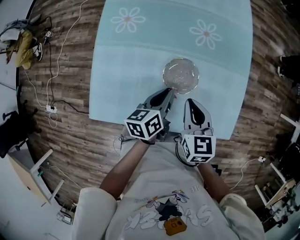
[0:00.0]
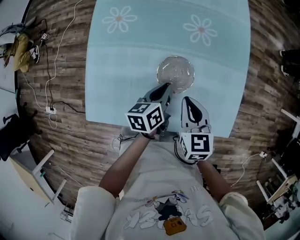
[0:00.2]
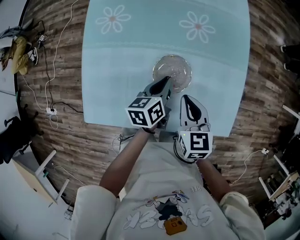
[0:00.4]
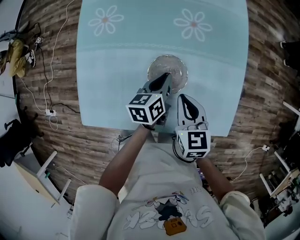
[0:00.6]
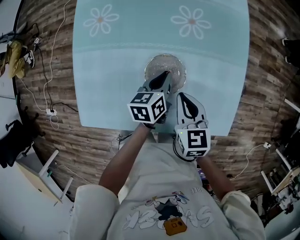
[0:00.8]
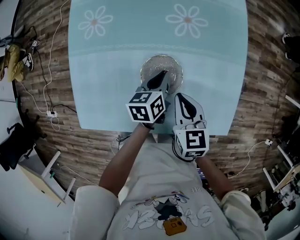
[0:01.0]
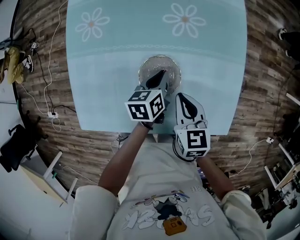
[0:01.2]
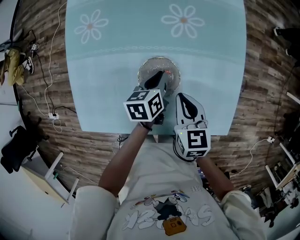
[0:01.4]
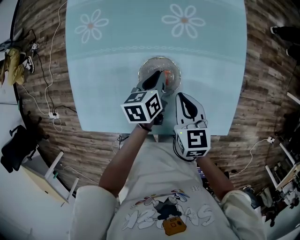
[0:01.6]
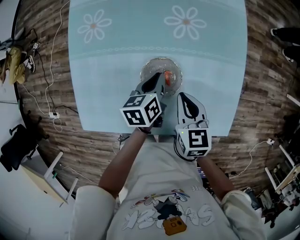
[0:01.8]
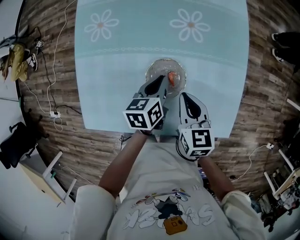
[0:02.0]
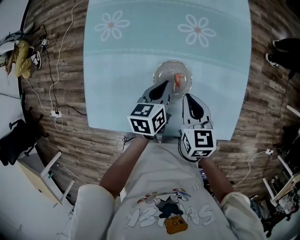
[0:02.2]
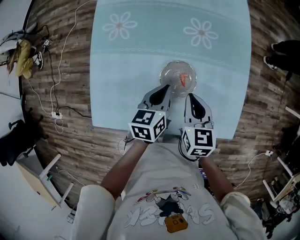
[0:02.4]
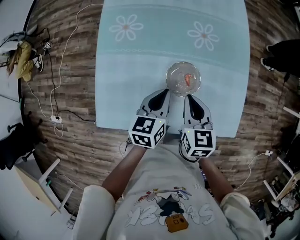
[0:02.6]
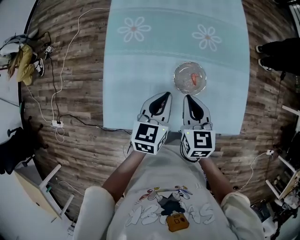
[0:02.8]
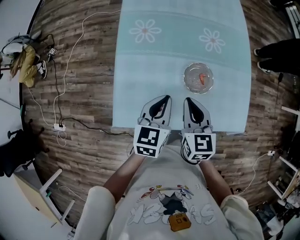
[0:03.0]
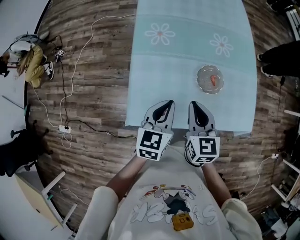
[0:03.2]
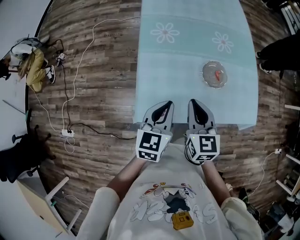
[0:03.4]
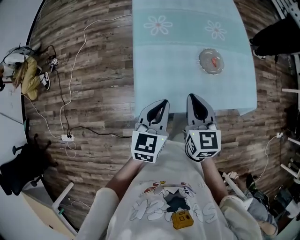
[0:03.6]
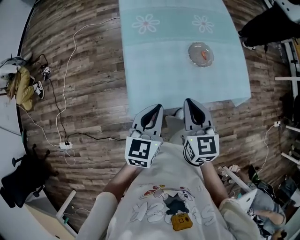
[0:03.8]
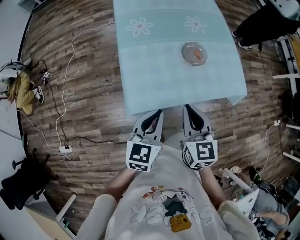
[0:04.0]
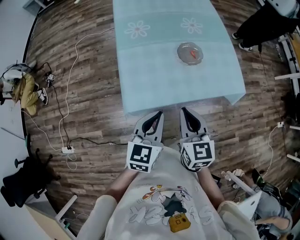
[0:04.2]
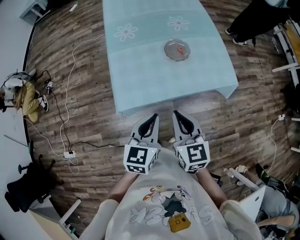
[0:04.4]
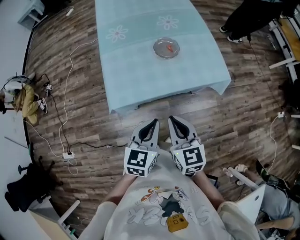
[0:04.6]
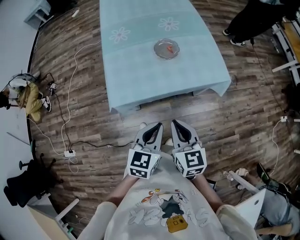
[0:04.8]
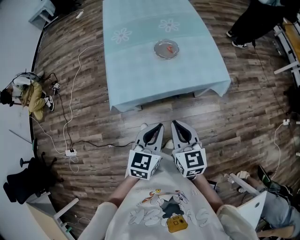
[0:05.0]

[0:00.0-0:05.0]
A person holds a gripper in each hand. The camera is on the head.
0:00.0 to 0:01.6: The right gripper moves downward and to the right, approximately 10 cm, while the left gripper is displaced forward, downward and to the right by about 15 cm.
0:01.6 to 0:03.4: Both grippers move to the left, backward and upward, approximately 40 cm. The right gripper swivels some 20 degrees; the left gripper swivels roughly 40 degrees.
0:03.4 to 0:05.0: The grippers both shift backward and to the right by approximately 35 cm.

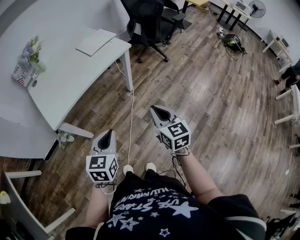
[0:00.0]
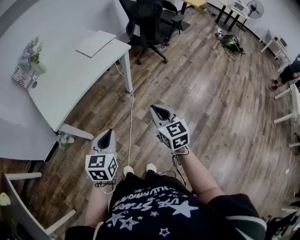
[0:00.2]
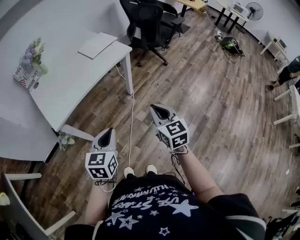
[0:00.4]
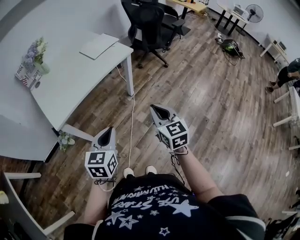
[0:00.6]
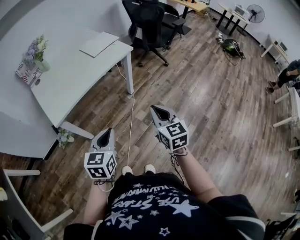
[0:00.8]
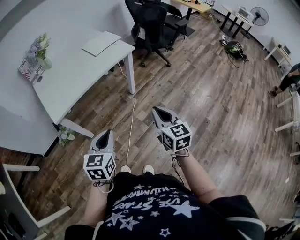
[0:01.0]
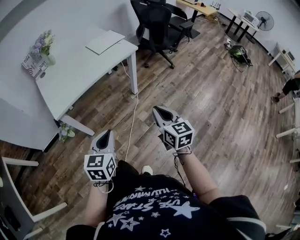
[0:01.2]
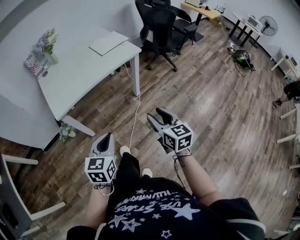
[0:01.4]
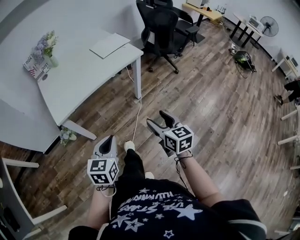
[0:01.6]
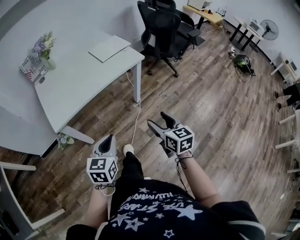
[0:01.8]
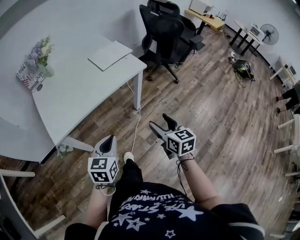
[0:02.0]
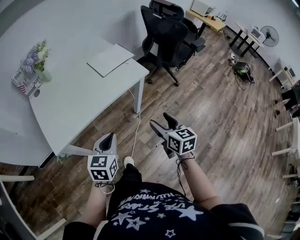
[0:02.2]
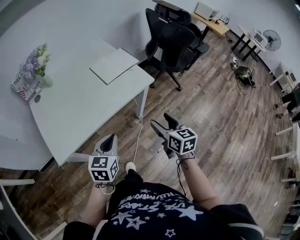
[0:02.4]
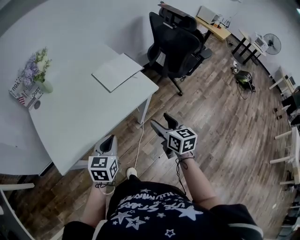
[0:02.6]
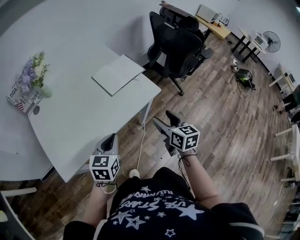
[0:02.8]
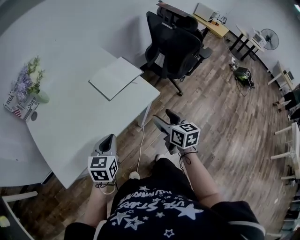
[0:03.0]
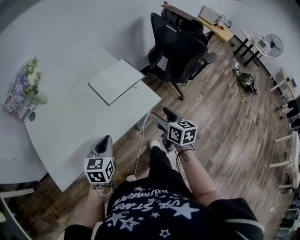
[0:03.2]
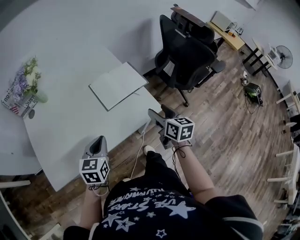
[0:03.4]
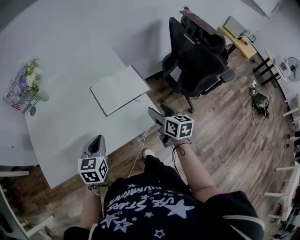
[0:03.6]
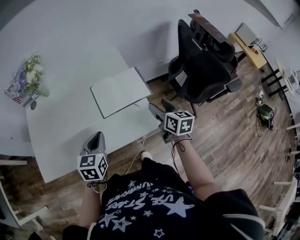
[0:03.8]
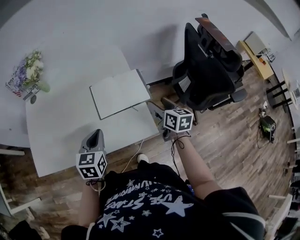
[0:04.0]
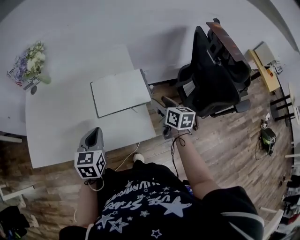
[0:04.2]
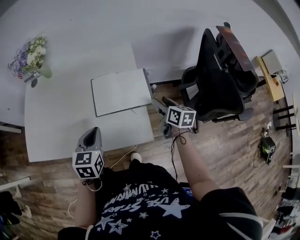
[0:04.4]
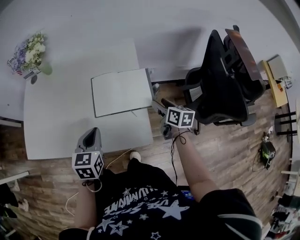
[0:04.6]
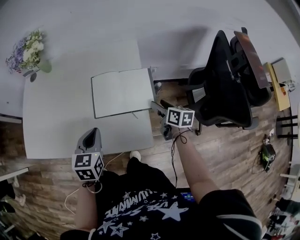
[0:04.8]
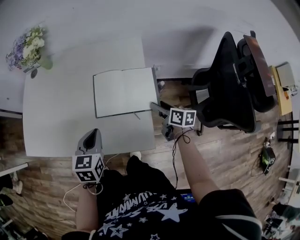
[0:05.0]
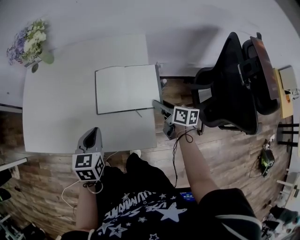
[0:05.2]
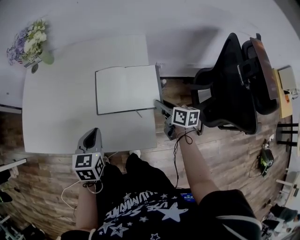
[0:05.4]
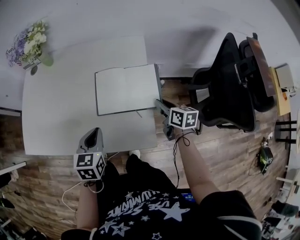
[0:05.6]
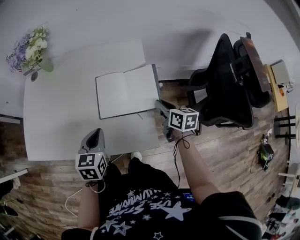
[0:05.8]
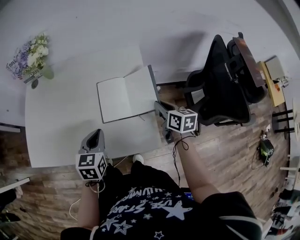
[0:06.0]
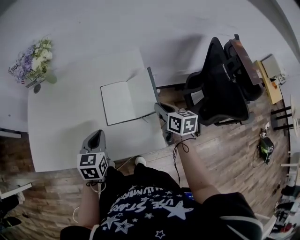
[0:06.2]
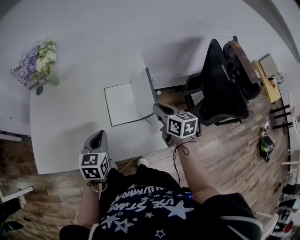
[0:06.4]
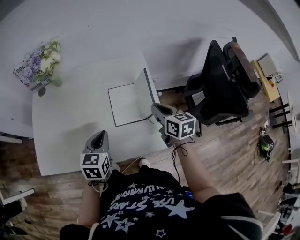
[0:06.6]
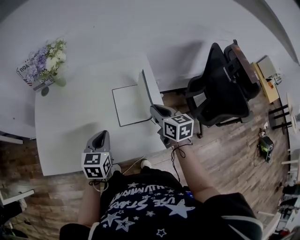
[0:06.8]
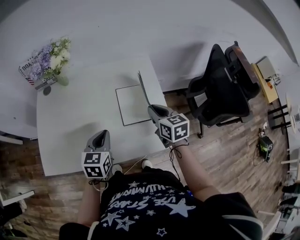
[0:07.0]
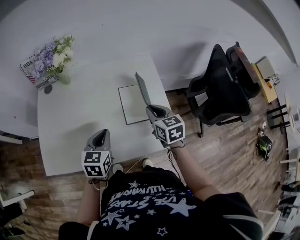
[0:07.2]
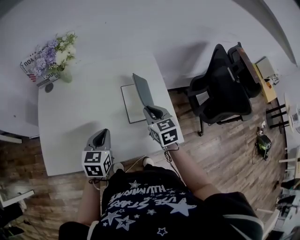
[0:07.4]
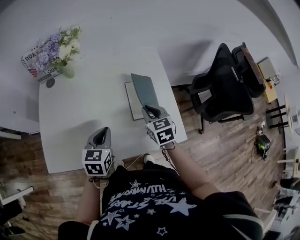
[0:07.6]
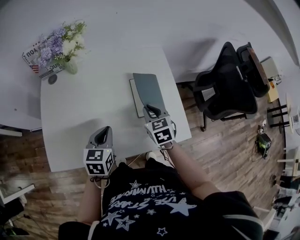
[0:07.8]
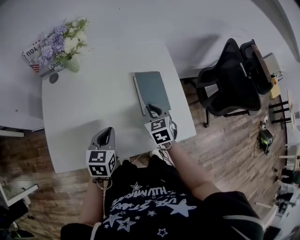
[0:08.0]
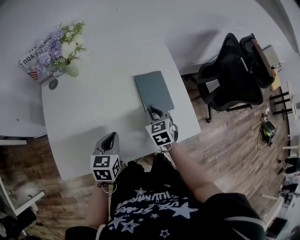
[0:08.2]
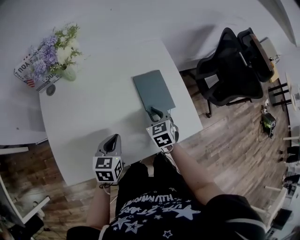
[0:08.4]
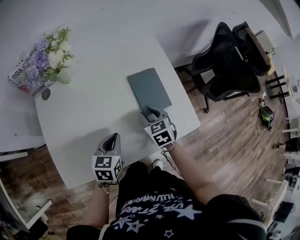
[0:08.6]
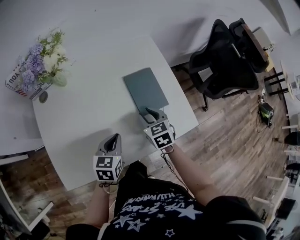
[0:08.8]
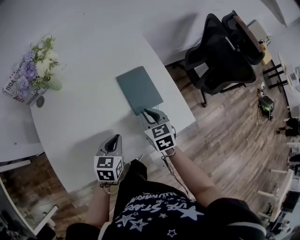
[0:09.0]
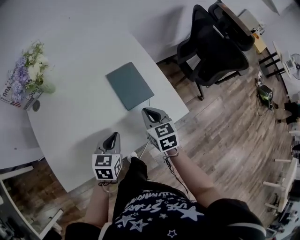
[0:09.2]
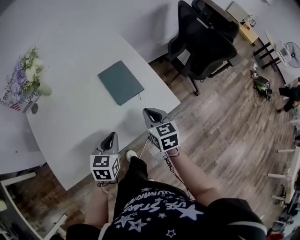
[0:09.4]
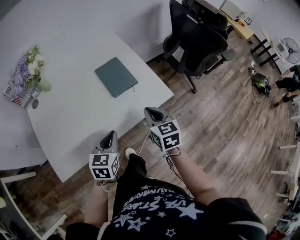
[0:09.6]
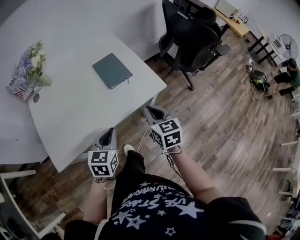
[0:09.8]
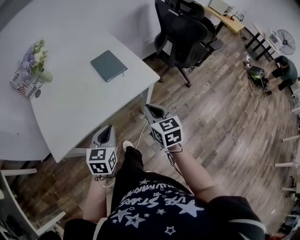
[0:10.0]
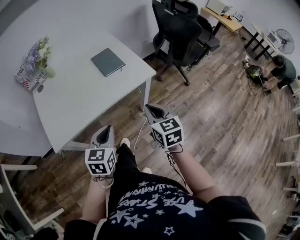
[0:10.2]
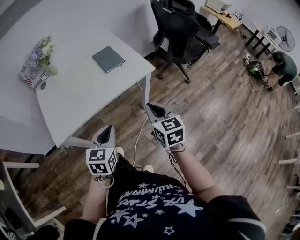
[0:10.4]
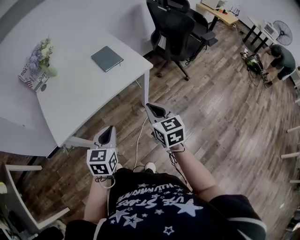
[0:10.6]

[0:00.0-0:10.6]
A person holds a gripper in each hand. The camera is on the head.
0:00.0 to 0:01.6: The right gripper opens.
0:01.6 to 0:03.0: Both grippers move forward, approximately 40 cm.
0:03.0 to 0:04.6: The left gripper ends up roughly 20 cm from where it was, and swivels some 40 degrees, while the right gripper changes place by approximately 40 cm, and changes its angle by roughly 40 degrees.
0:04.6 to 0:06.0: The right gripper travels to the left by some 5 cm, and closes up.
0:06.0 to 0:07.6: The right gripper is displaced to the left by about 20 cm, and changes its angle by some 30 degrees. The left gripper goes approximately 15 cm to the left.
0:07.6 to 0:09.0: The left gripper heads downward, covering approximately 5 cm.
0:09.0 to 0:10.6: The left gripper shifts roughly 30 cm backward; the right gripper goes some 40 cm backward and to the right, and turns by roughly 20 degrees.

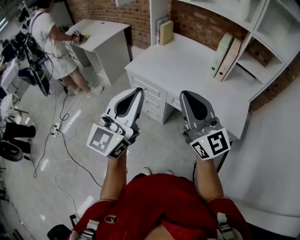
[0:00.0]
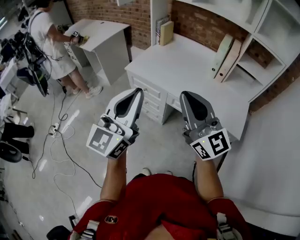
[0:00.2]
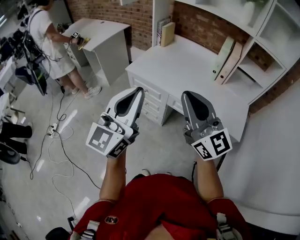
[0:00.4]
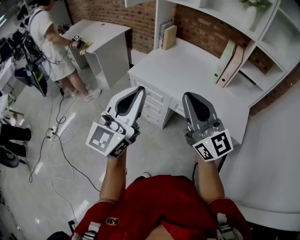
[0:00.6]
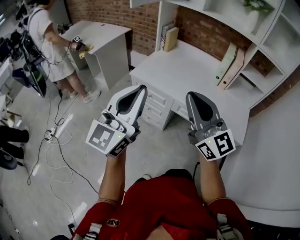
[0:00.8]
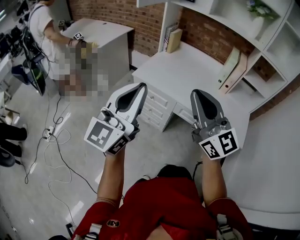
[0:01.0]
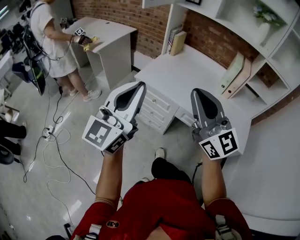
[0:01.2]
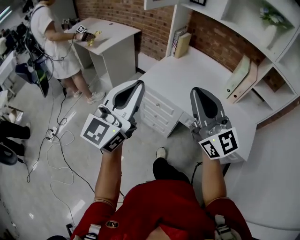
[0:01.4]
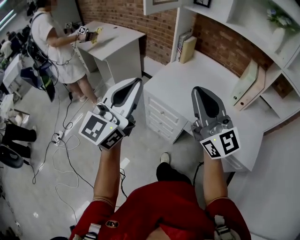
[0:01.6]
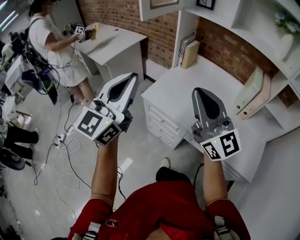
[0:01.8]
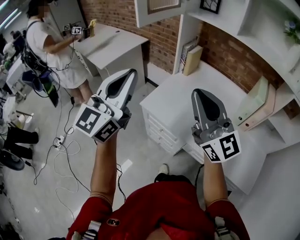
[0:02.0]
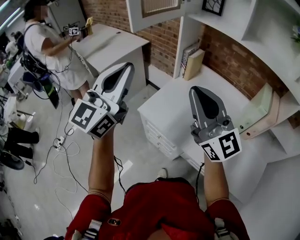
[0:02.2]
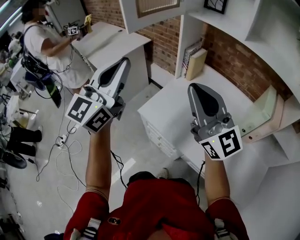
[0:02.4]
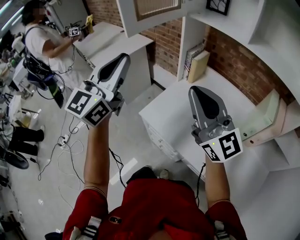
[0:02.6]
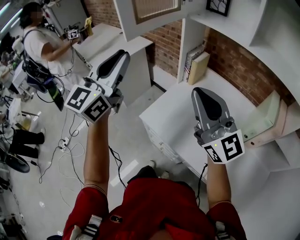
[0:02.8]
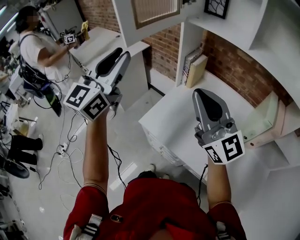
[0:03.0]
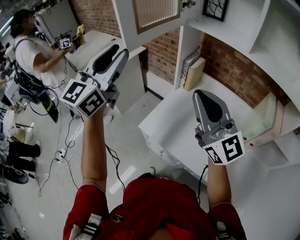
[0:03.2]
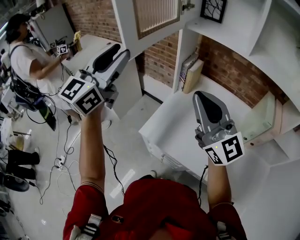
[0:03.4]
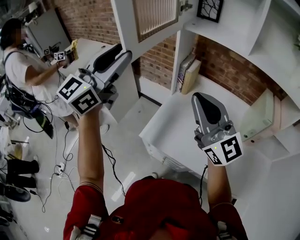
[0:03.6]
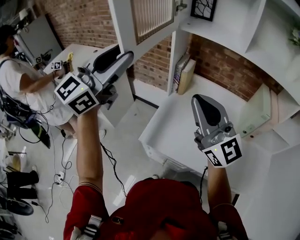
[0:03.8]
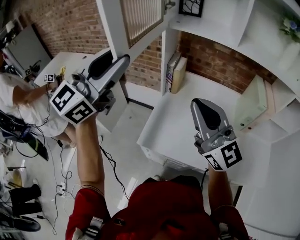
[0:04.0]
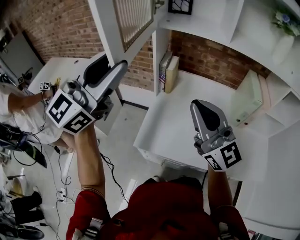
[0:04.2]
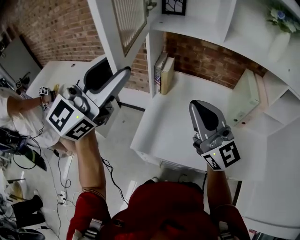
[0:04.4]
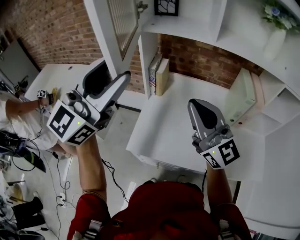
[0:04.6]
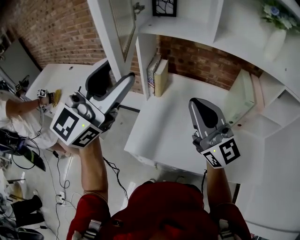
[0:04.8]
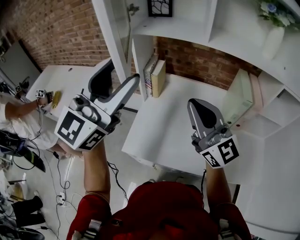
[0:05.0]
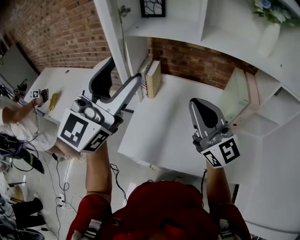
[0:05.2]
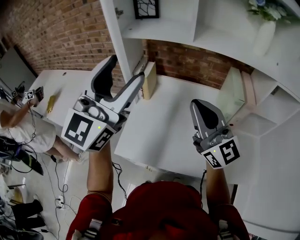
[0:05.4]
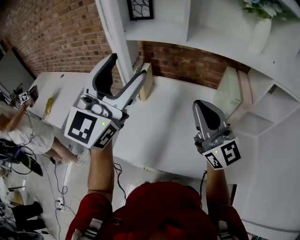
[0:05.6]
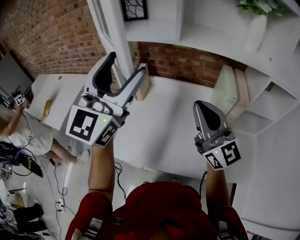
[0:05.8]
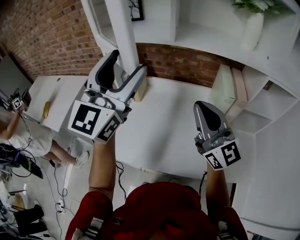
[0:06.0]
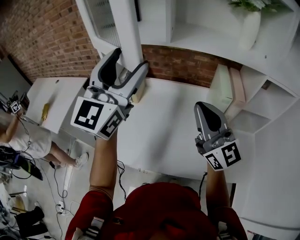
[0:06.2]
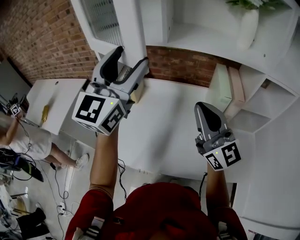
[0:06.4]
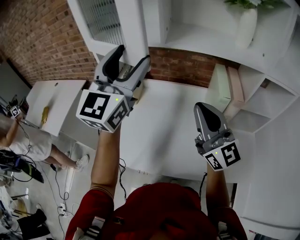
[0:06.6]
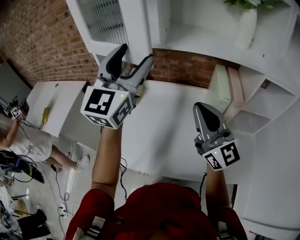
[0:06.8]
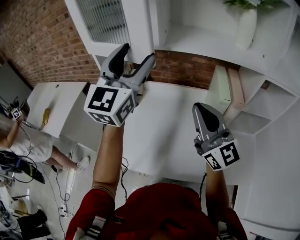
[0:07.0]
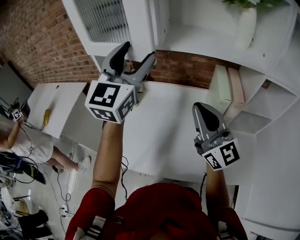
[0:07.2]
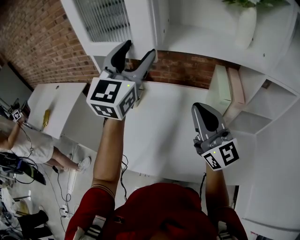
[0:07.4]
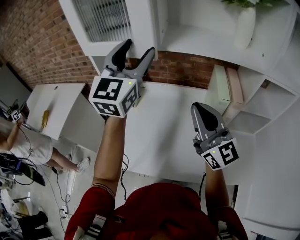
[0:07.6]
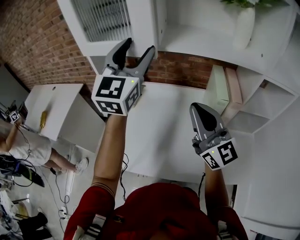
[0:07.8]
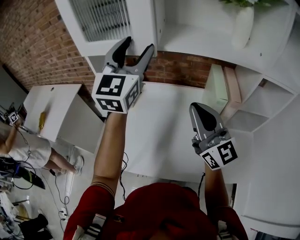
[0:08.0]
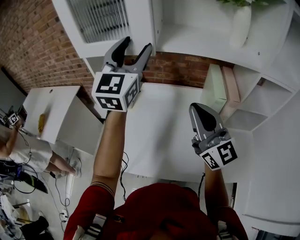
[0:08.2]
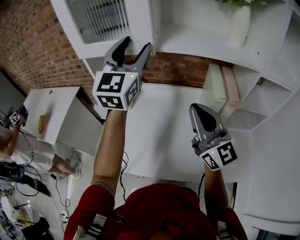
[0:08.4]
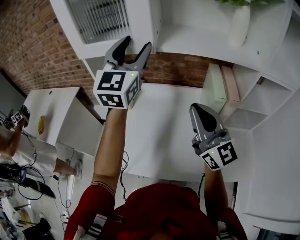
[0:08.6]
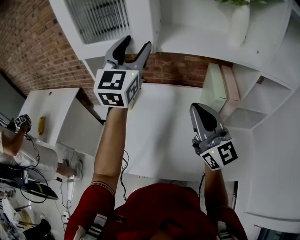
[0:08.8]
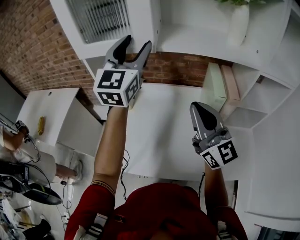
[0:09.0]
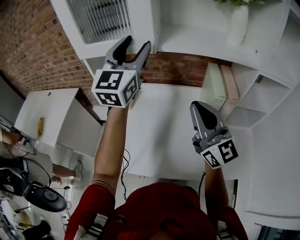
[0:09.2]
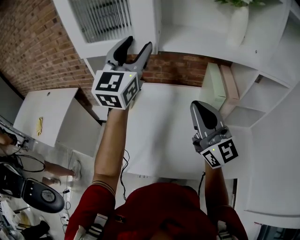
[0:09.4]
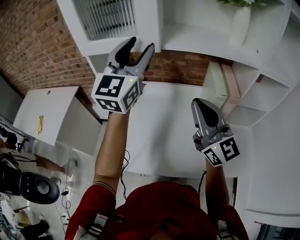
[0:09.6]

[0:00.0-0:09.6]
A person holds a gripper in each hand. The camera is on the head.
0:00.0 to 0:01.6: Both grippers move forward and to the left, some 25 cm.
0:01.6 to 0:03.2: The grippers both shift forward by approximately 30 cm. The left gripper opens.
0:03.2 to 0:04.8: The right gripper shifts by roughly 5 cm. Meanwhile the left gripper shifts by some 10 cm, and turns by about 30 degrees.
0:04.8 to 0:06.4: The left gripper is displaced to the right and forward by about 20 cm. Meanwhile the right gripper goes about 15 cm to the right.
0:06.4 to 0:08.0: The left gripper heads forward, covering about 10 cm.
0:08.0 to 0:09.6: There are only small adjustments of the grippers.
